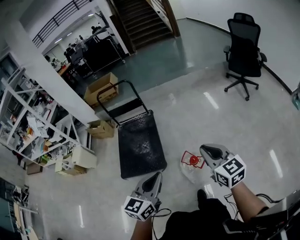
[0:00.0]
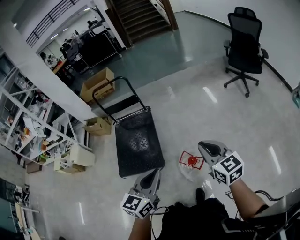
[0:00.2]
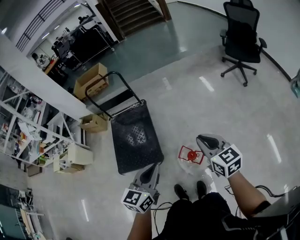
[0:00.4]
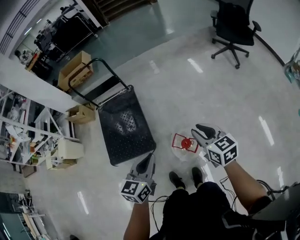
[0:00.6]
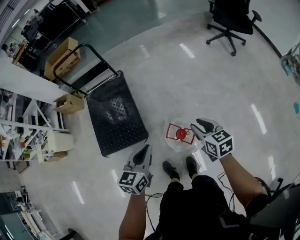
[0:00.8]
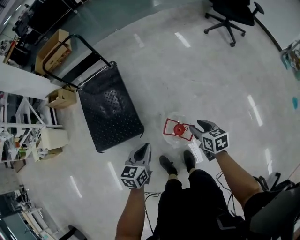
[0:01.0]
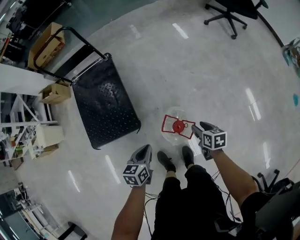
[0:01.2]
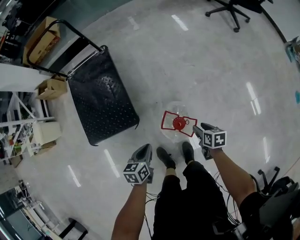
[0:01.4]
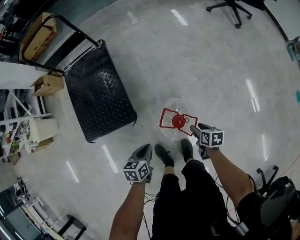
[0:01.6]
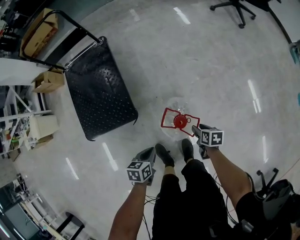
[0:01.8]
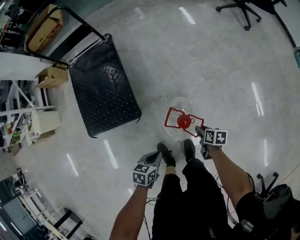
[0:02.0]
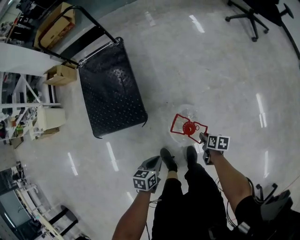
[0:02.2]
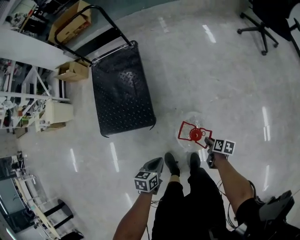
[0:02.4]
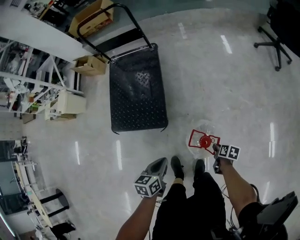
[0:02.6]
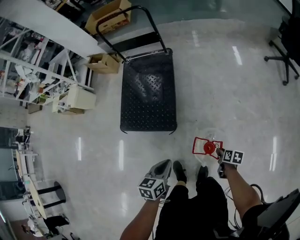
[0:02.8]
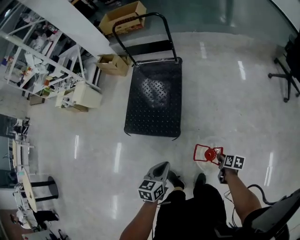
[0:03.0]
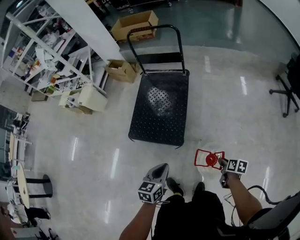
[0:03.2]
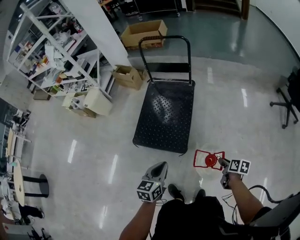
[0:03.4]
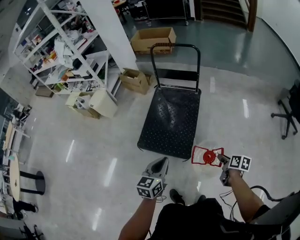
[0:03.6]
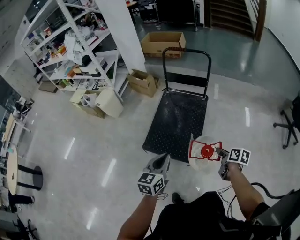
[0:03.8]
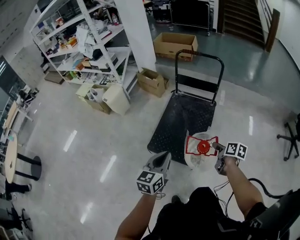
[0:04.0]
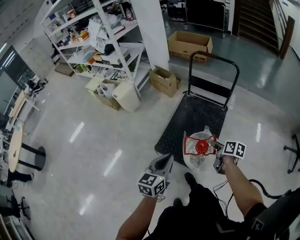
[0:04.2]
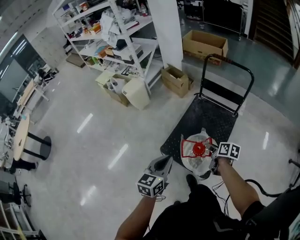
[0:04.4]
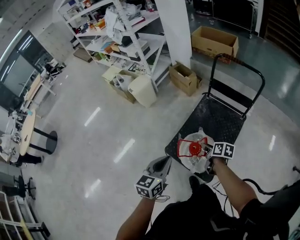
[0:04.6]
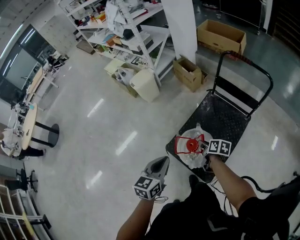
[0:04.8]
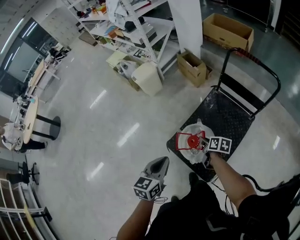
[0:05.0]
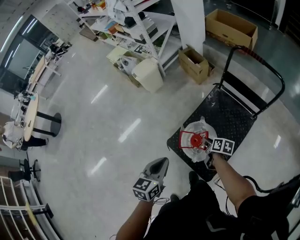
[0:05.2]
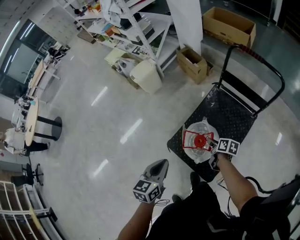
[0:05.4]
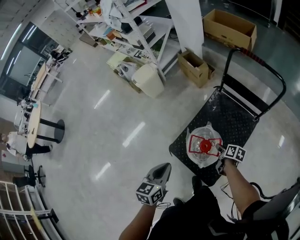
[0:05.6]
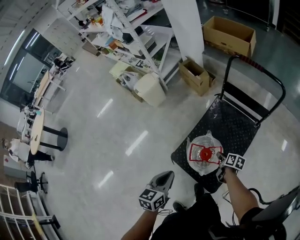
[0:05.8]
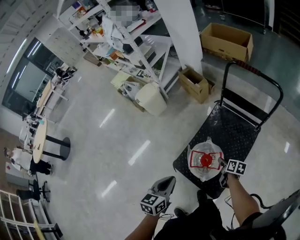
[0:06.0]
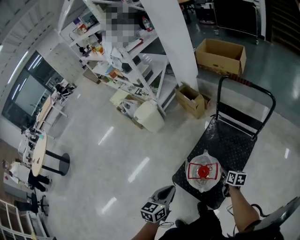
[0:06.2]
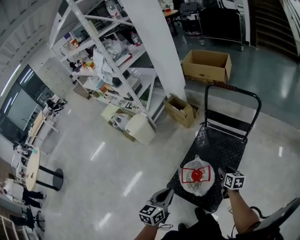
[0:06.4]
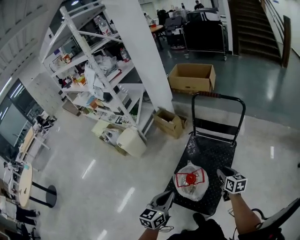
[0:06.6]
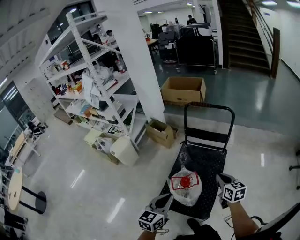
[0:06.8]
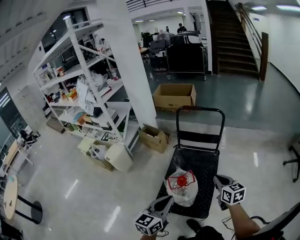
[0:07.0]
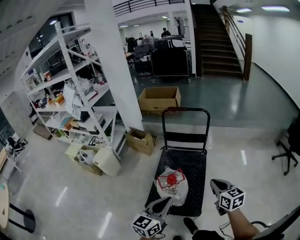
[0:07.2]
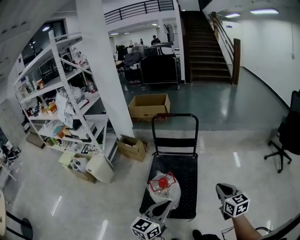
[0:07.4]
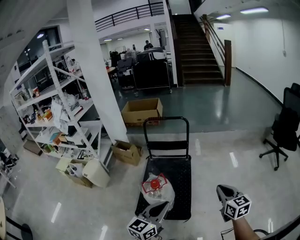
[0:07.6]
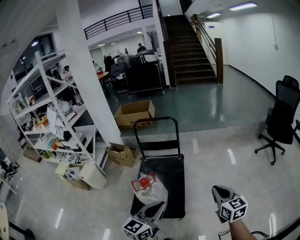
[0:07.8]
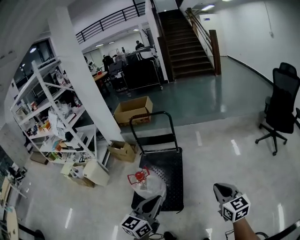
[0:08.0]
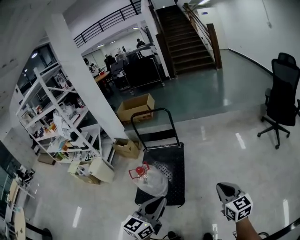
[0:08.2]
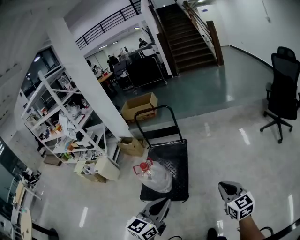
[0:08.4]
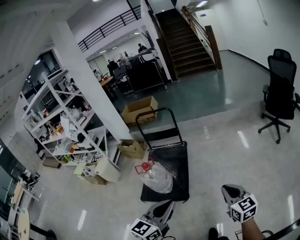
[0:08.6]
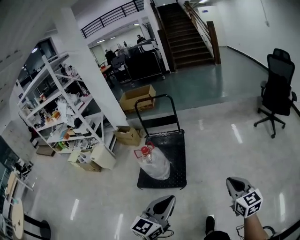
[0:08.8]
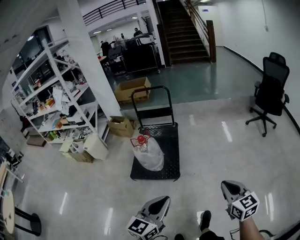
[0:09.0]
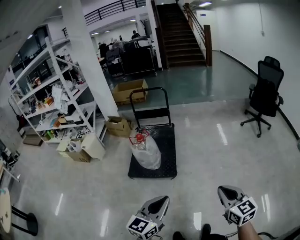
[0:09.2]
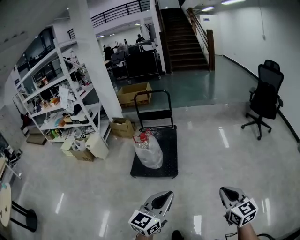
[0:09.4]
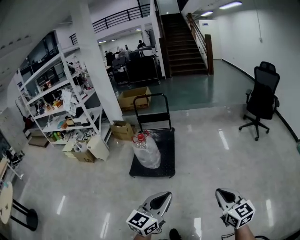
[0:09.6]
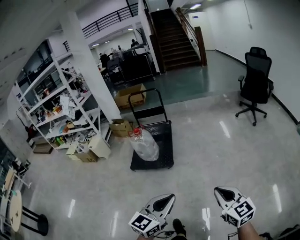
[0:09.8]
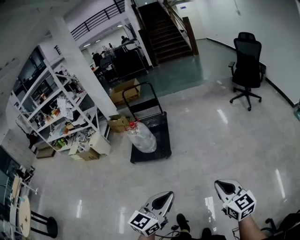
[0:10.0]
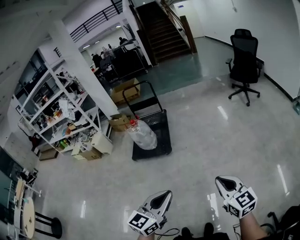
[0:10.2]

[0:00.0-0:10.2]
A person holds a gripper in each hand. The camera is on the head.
0:00.0 to 0:01.4: The grippers both shift downward by some 50 cm. The right gripper angles its fingers downward, by about 40 degrees, and opens its fingers, while the left gripper points its fingers about 30 degrees further downward.
0:01.4 to 0:03.0: The left gripper moves upward, some 15 cm, and turns by about 20 degrees; the right gripper reaches roughly 10 cm downward, then returns, and closes up.
0:03.0 to 0:04.4: Both grippers move to the left, forward and upward, about 50 cm. The right gripper swivels roughly 30 degrees. The left gripper swivels roughly 30 degrees.
0:04.4 to 0:05.8: The left gripper heads forward and downward, covering roughly 15 cm, while the right gripper shifts some 25 cm forward, downward and to the right.
0:05.8 to 0:07.2: The right gripper moves upward, roughly 35 cm, turns by about 50 degrees, and closes its fingers, while the left gripper goes approximately 15 cm upward, and turns by some 40 degrees.
0:07.2 to 0:08.8: The pair of grippers is taken to the right and backward, roughly 50 cm.
0:08.8 to 0:10.2: The two grippers travel together, backward, about 50 cm.

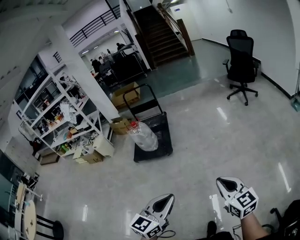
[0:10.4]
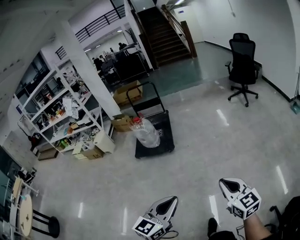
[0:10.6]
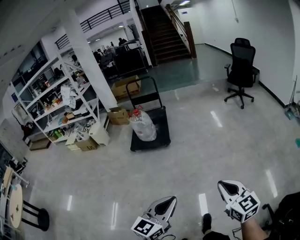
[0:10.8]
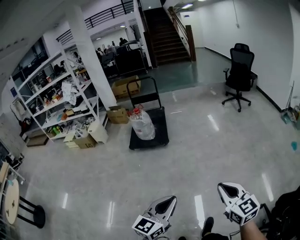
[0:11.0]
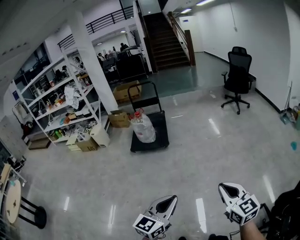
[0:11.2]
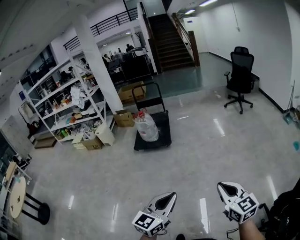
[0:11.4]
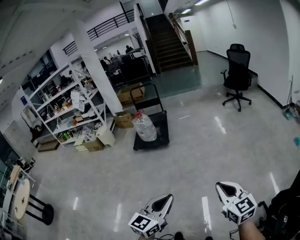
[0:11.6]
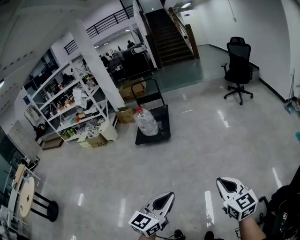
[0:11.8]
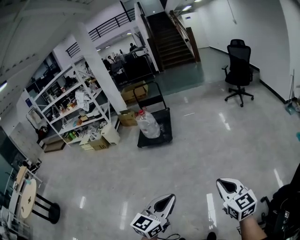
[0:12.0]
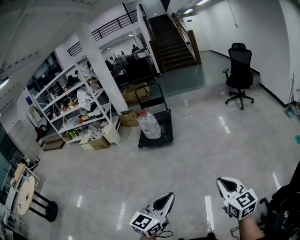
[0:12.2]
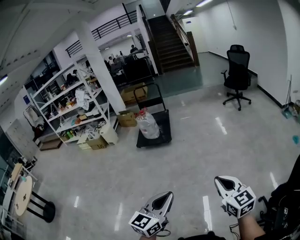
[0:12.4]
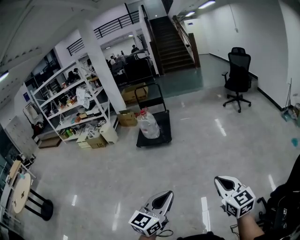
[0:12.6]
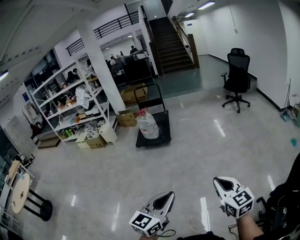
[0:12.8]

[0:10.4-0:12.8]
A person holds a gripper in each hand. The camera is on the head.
0:10.4 to 0:11.6: The grippers both shift backward by approximately 30 cm.
0:11.6 to 0:12.8: The two grippers go roughly 10 cm backward.

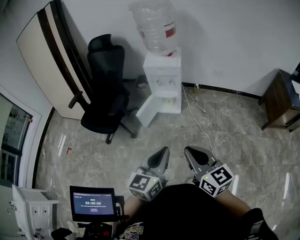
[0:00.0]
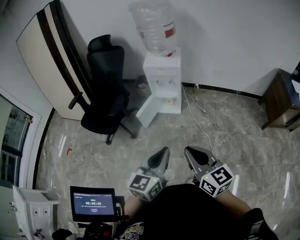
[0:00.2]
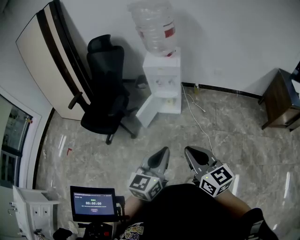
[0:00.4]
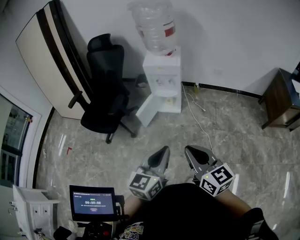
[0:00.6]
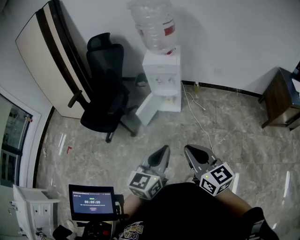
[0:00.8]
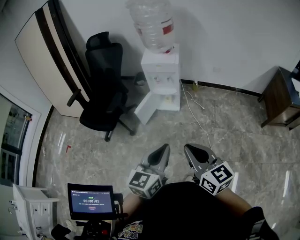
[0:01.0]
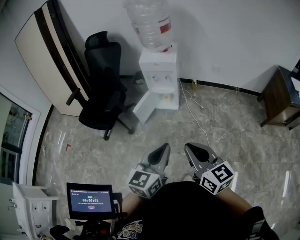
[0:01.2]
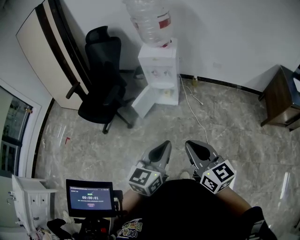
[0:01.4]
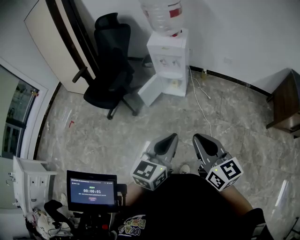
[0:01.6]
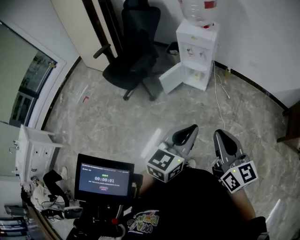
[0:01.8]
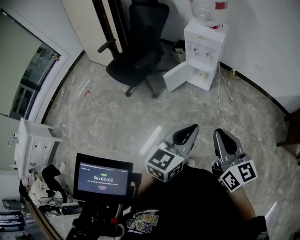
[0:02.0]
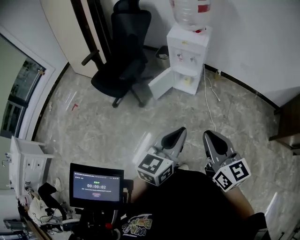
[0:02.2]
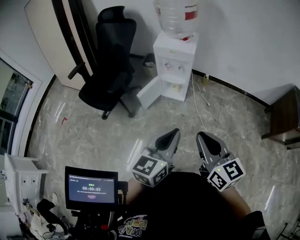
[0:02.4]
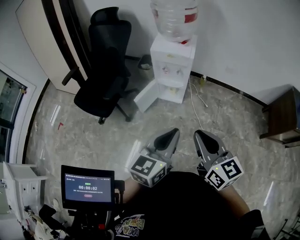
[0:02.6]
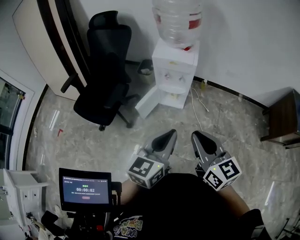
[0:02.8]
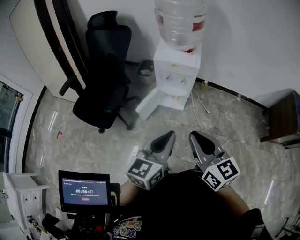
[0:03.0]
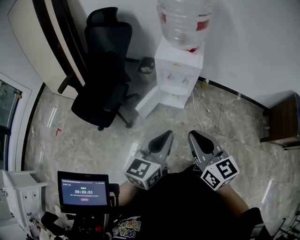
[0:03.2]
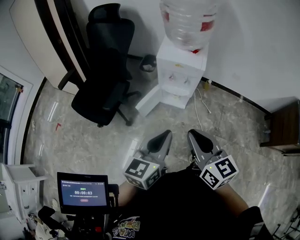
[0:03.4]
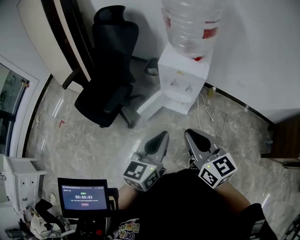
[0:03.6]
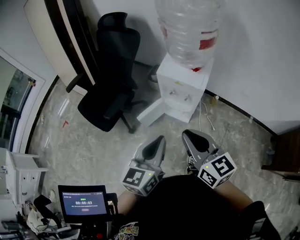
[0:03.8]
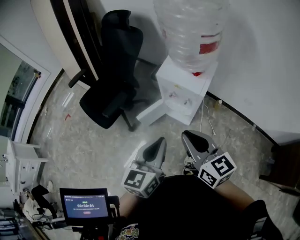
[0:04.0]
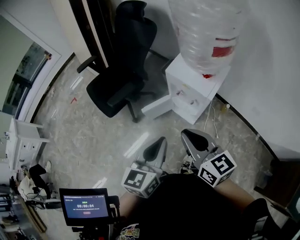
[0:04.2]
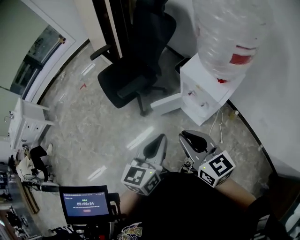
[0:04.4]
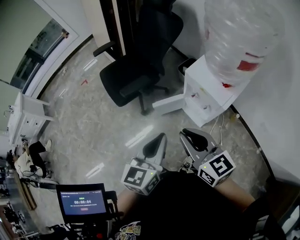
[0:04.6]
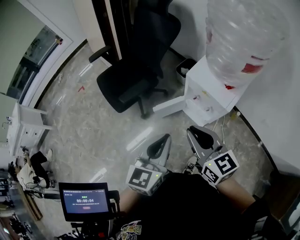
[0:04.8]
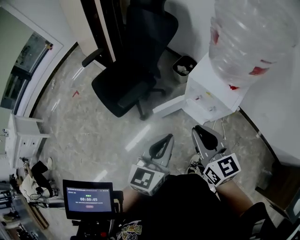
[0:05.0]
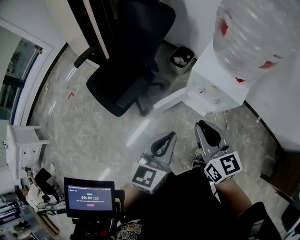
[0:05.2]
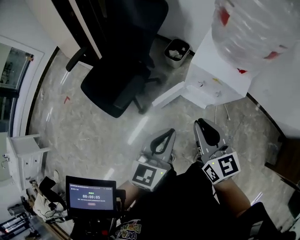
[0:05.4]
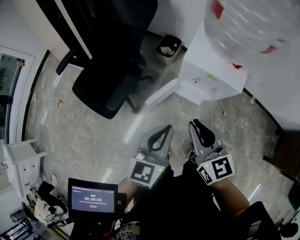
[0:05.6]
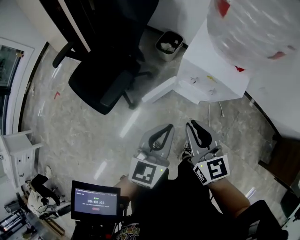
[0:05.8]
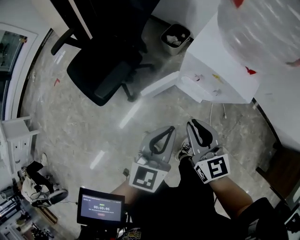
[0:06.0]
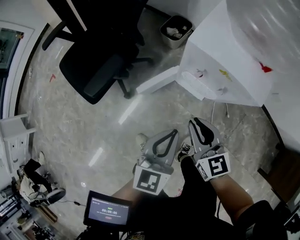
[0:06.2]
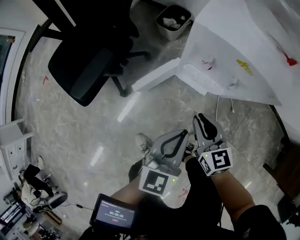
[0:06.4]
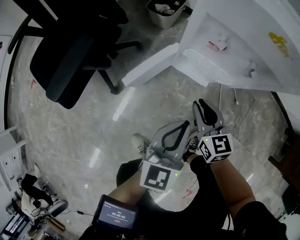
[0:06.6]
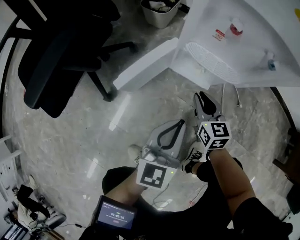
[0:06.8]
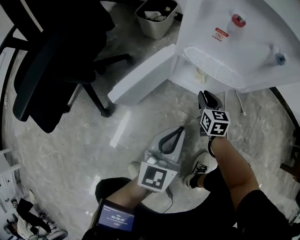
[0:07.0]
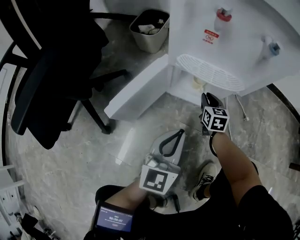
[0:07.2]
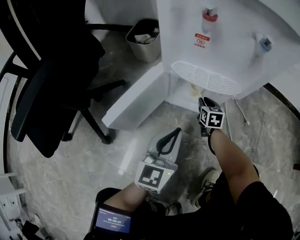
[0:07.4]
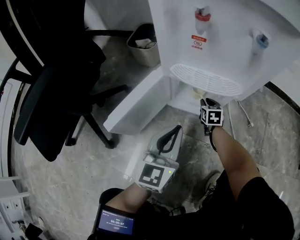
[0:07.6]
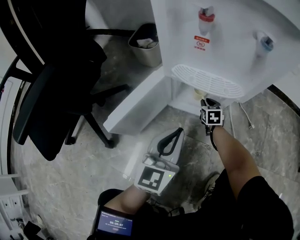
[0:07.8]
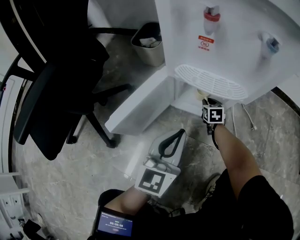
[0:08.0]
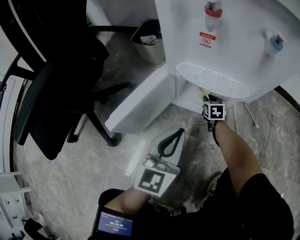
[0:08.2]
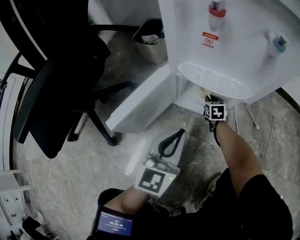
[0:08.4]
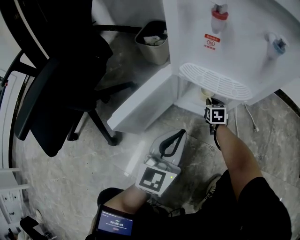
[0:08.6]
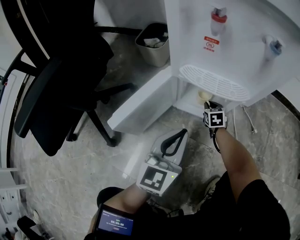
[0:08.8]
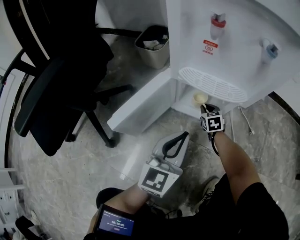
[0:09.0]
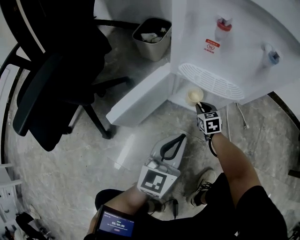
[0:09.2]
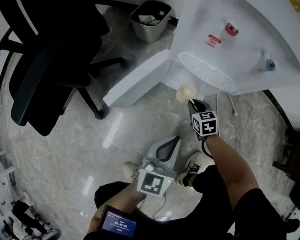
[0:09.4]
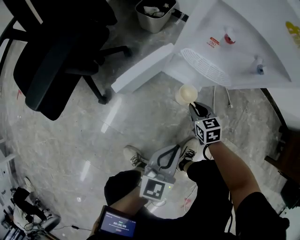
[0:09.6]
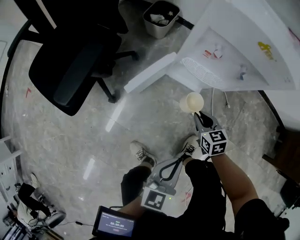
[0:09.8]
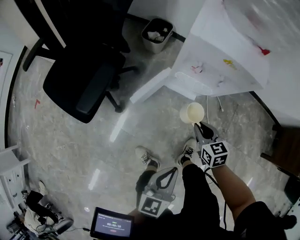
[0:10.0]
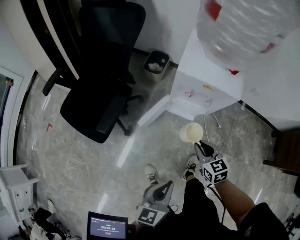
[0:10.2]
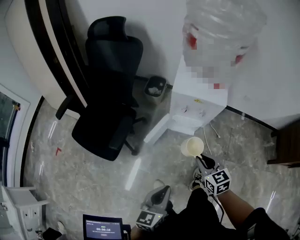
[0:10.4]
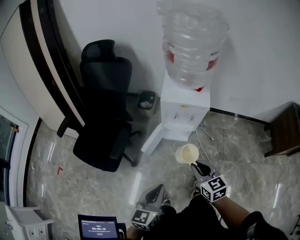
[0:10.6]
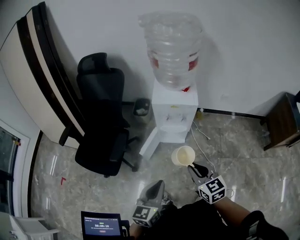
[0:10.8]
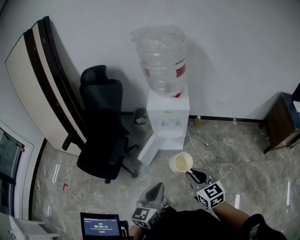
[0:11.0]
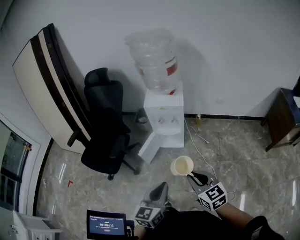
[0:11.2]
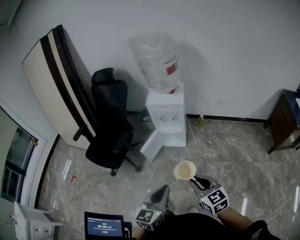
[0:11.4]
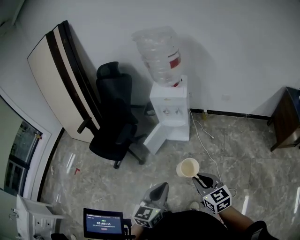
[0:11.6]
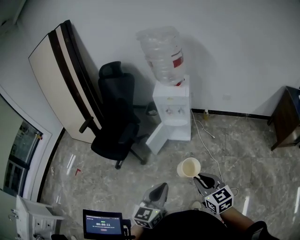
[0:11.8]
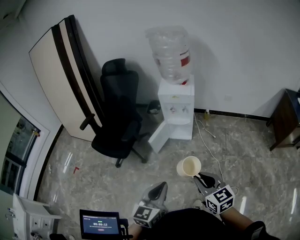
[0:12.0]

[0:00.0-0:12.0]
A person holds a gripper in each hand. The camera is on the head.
0:00.0 to 0:01.6: The grippers both shift to the right by approximately 10 cm.
0:01.6 to 0:03.0: Both grippers move forward and to the left, some 25 cm.
0:03.0 to 0:04.4: The left gripper moves some 15 cm, and turns by roughly 40 degrees. The right gripper shifts by some 20 cm, and rotates about 40 degrees.
0:04.4 to 0:06.0: The two grippers go roughly 15 cm downward. The right gripper swivels some 30 degrees, while the left gripper swivels some 20 degrees.
0:06.0 to 0:07.6: The right gripper travels downward by about 70 cm, and swivels about 40 degrees, while the left gripper travels downward by roughly 40 cm.
0:07.6 to 0:09.0: There are only small adjustments of the grippers.
0:09.0 to 0:10.4: Both grippers travel together upward and backward, some 60 cm. The left gripper turns by roughly 20 degrees.
0:10.4 to 0:12.0: Both grippers travel together backward and upward, some 30 cm.
